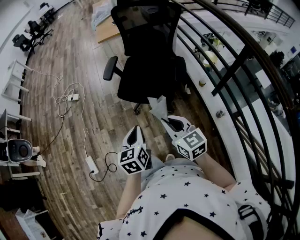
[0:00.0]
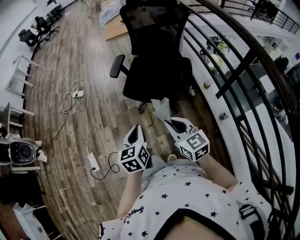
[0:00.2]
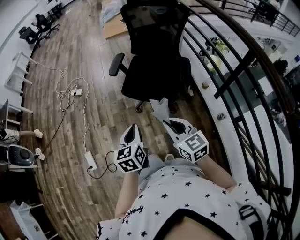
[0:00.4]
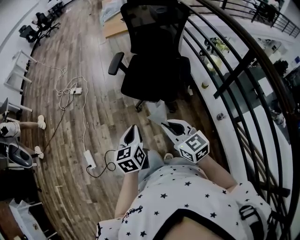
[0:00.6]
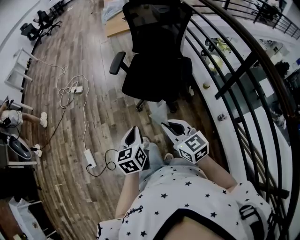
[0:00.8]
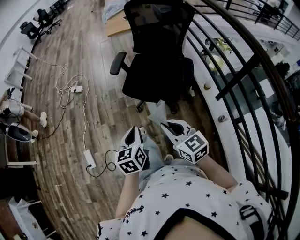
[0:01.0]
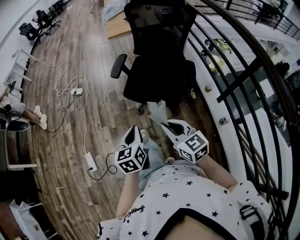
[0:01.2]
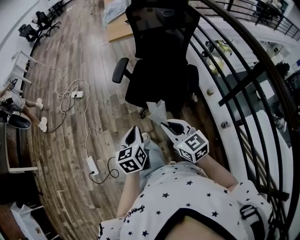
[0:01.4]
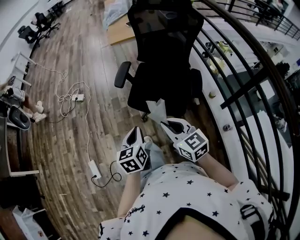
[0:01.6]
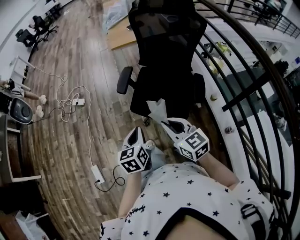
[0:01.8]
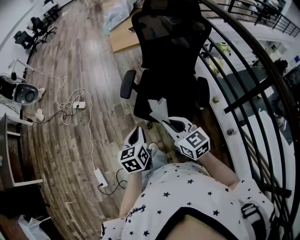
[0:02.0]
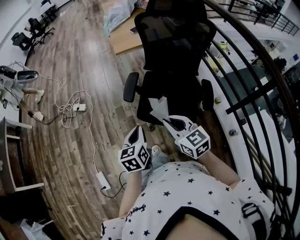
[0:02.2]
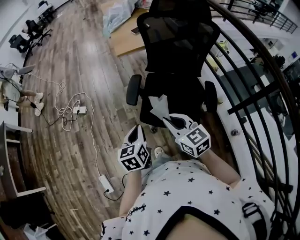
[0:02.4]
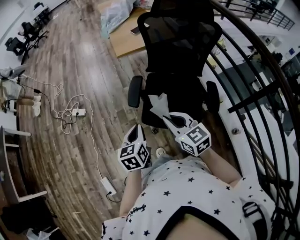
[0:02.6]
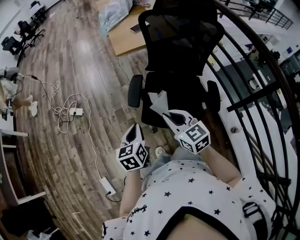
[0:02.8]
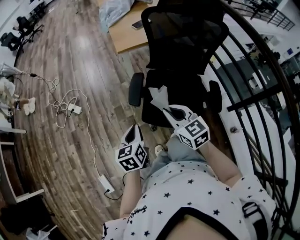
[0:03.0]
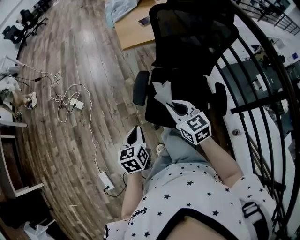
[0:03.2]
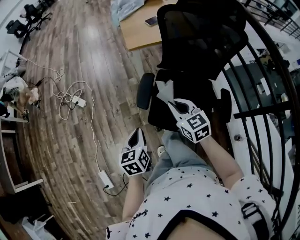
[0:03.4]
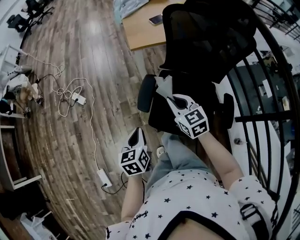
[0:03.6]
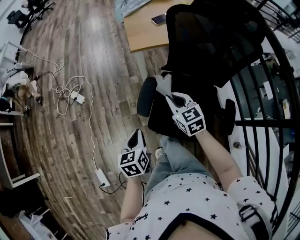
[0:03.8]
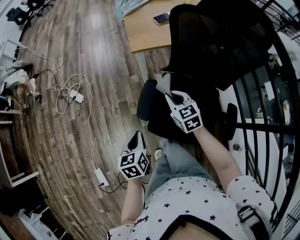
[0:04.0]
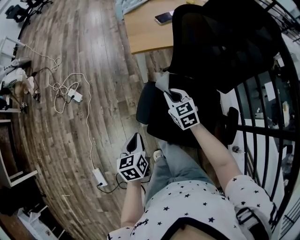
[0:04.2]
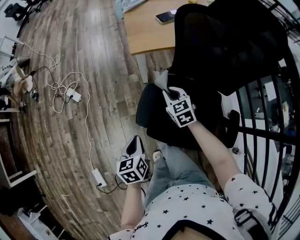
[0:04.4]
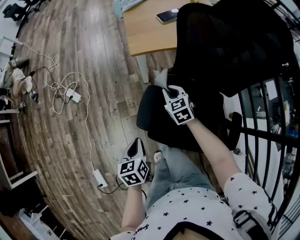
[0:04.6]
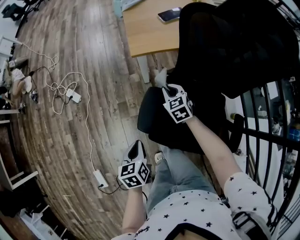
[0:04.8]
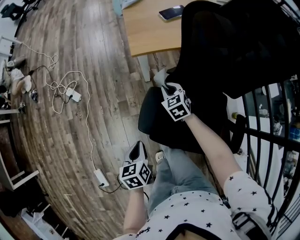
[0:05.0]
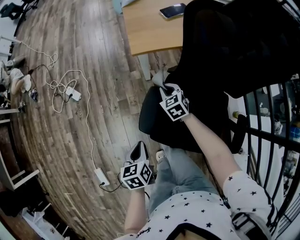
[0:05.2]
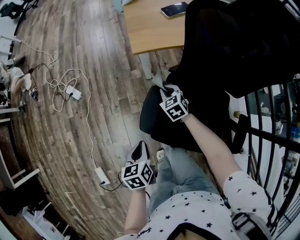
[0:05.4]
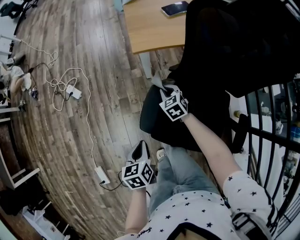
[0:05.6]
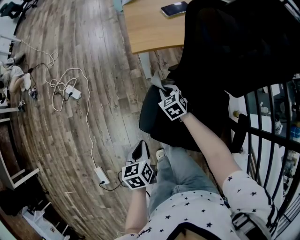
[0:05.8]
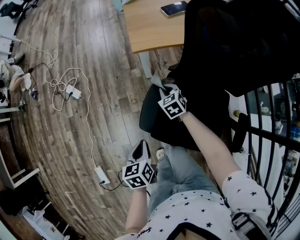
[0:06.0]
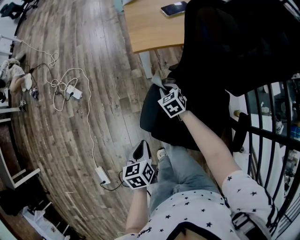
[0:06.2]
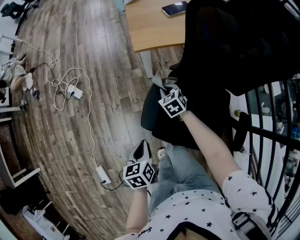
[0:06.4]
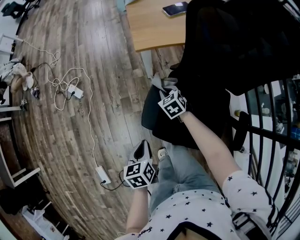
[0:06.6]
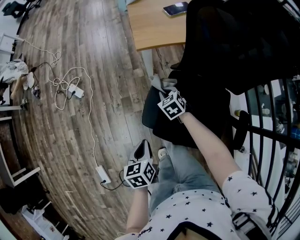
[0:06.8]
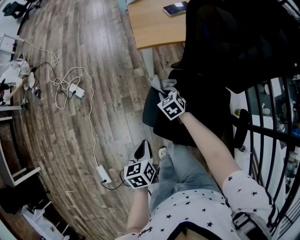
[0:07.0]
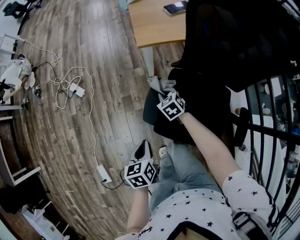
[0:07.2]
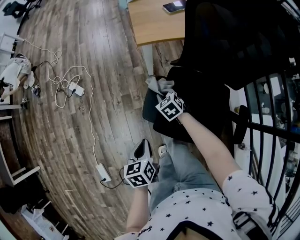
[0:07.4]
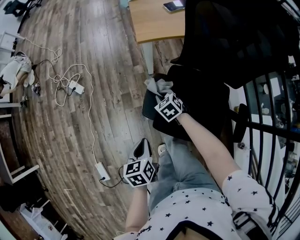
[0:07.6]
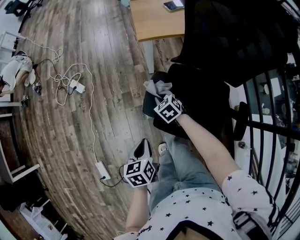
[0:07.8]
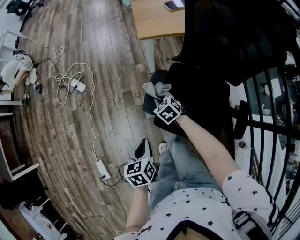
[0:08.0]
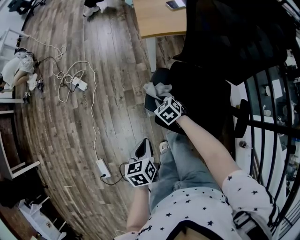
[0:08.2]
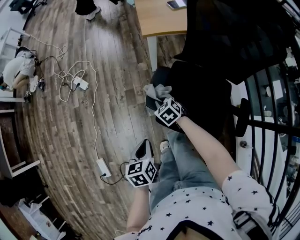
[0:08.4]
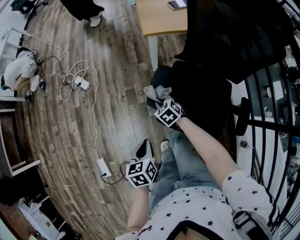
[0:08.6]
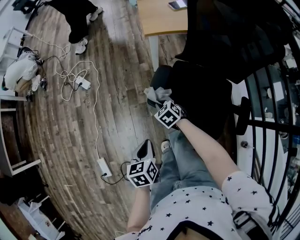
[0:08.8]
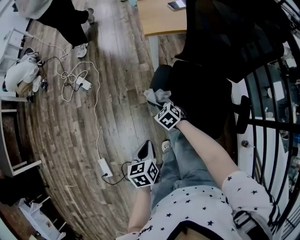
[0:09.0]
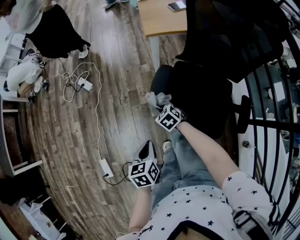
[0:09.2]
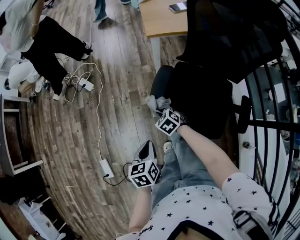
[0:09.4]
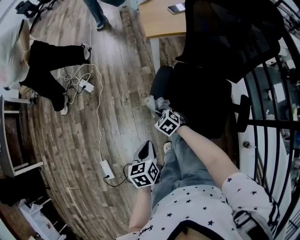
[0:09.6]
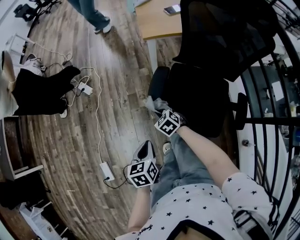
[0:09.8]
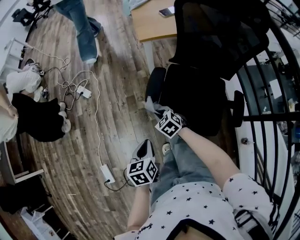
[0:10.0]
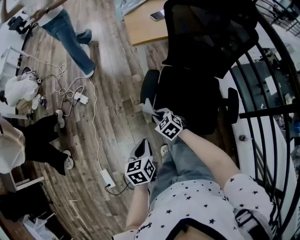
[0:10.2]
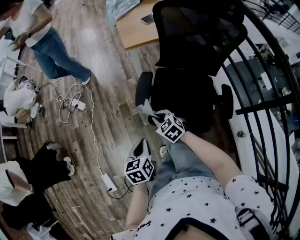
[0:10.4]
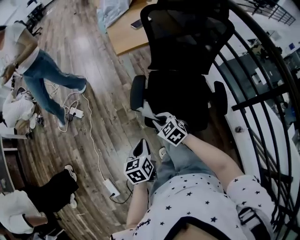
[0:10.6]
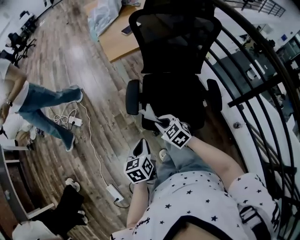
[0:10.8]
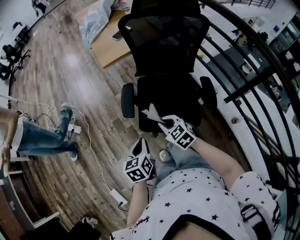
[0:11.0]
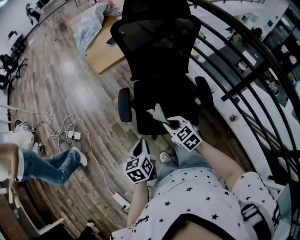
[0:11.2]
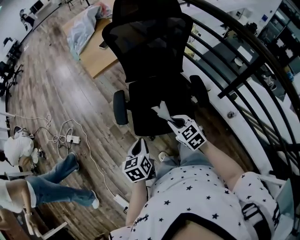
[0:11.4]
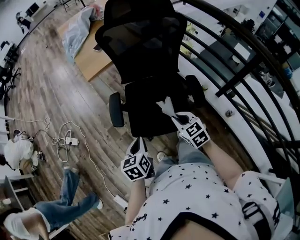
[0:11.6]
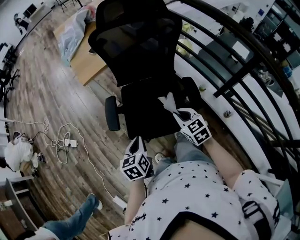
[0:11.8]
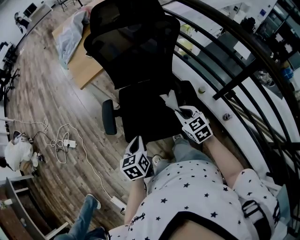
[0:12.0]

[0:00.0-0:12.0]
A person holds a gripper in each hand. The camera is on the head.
0.0 to 1.6 s: The grippers both shift forward by approximately 10 cm.
1.6 to 3.0 s: The right gripper heads forward, covering about 25 cm, while the left gripper shifts approximately 25 cm forward and to the left.
3.0 to 4.4 s: The left gripper moves forward and downward, about 15 cm, while the right gripper travels forward and downward by approximately 35 cm.
4.4 to 6.0 s: The right gripper heads downward, covering approximately 10 cm.
6.0 to 7.6 s: The right gripper shifts roughly 10 cm backward and to the left. The left gripper goes roughly 5 cm backward.
7.6 to 9.0 s: The left gripper goes about 5 cm backward; the right gripper shifts approximately 10 cm backward and to the left.
9.0 to 10.4 s: The right gripper goes some 15 cm upward and backward.
10.4 to 12.0 s: The right gripper shifts roughly 35 cm to the right, and rotates some 30 degrees. Meanwhile the left gripper moves to the right, about 20 cm.

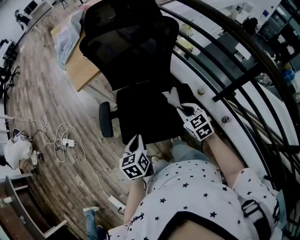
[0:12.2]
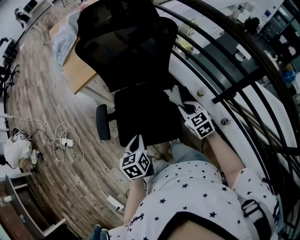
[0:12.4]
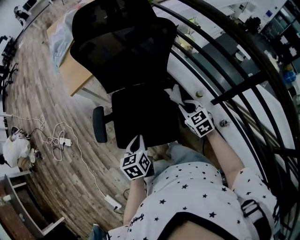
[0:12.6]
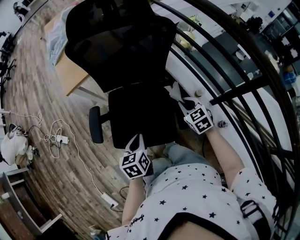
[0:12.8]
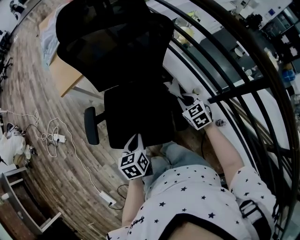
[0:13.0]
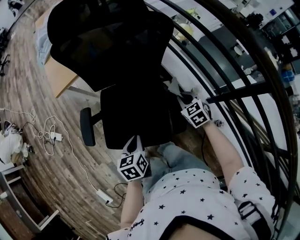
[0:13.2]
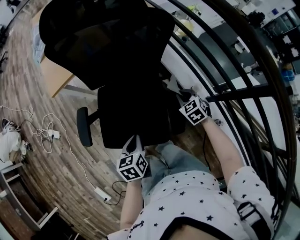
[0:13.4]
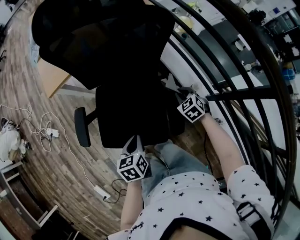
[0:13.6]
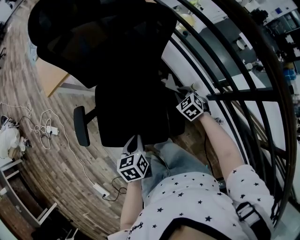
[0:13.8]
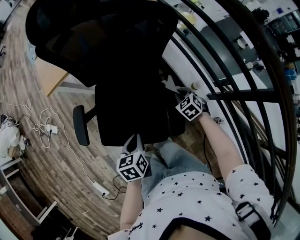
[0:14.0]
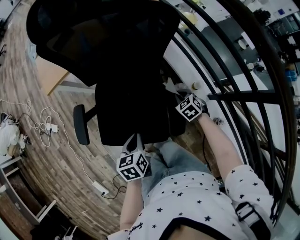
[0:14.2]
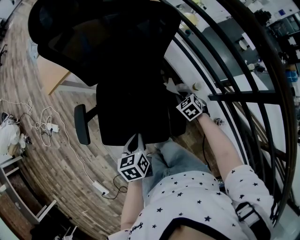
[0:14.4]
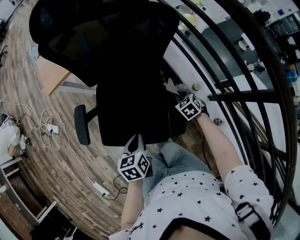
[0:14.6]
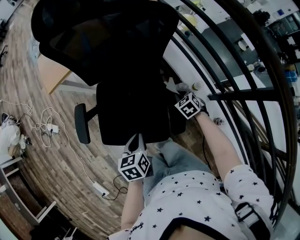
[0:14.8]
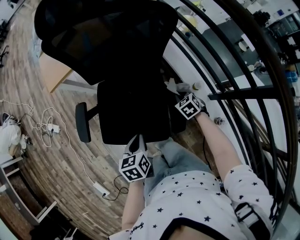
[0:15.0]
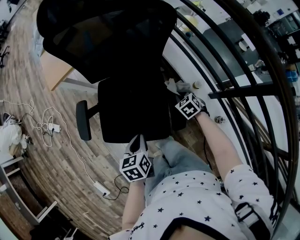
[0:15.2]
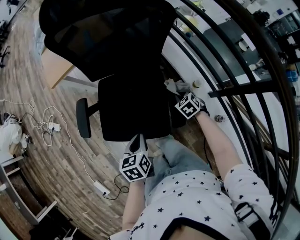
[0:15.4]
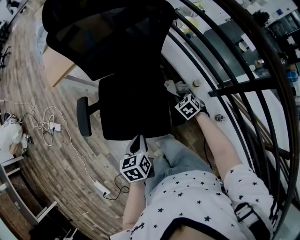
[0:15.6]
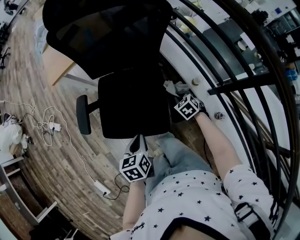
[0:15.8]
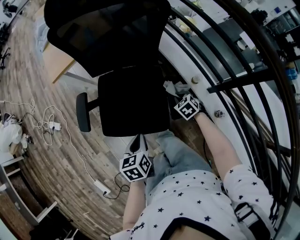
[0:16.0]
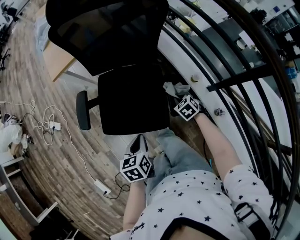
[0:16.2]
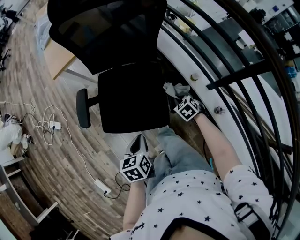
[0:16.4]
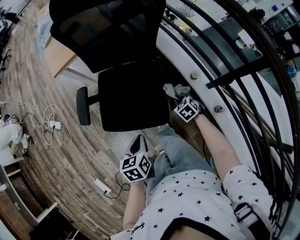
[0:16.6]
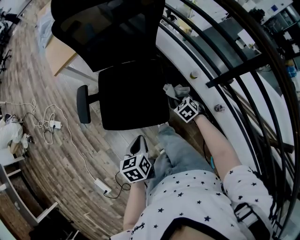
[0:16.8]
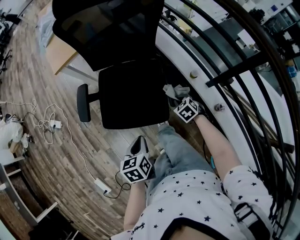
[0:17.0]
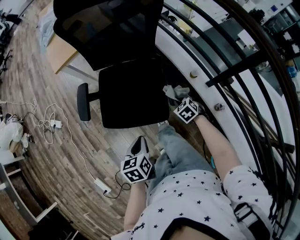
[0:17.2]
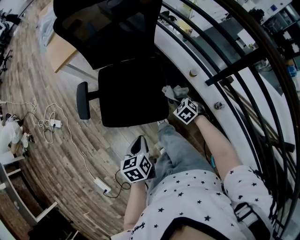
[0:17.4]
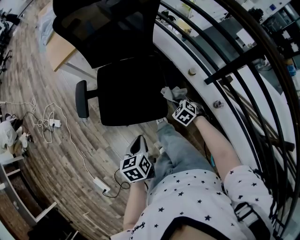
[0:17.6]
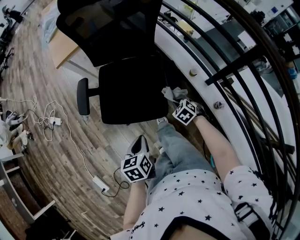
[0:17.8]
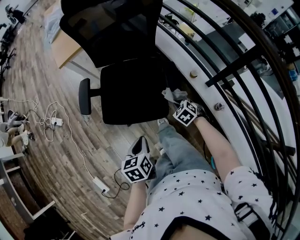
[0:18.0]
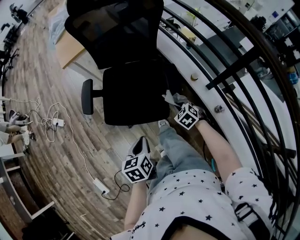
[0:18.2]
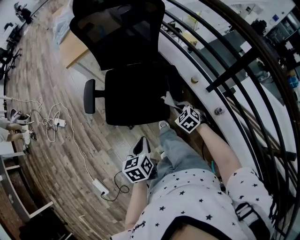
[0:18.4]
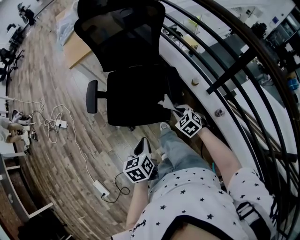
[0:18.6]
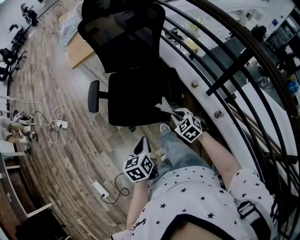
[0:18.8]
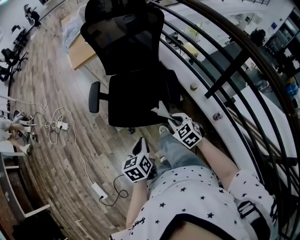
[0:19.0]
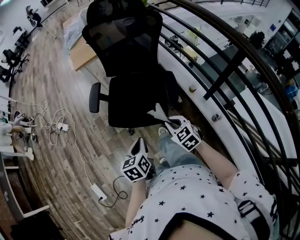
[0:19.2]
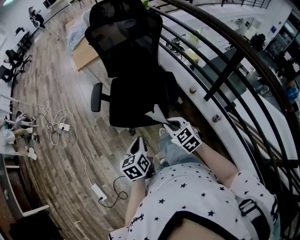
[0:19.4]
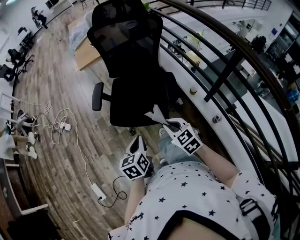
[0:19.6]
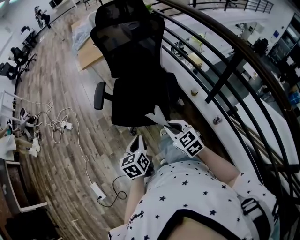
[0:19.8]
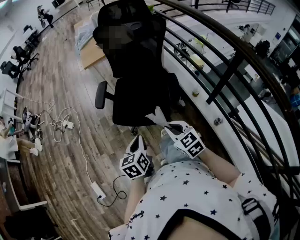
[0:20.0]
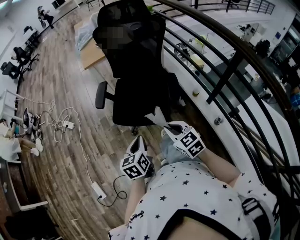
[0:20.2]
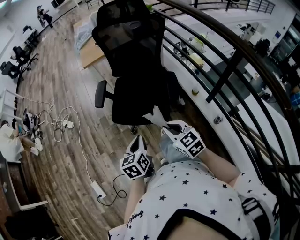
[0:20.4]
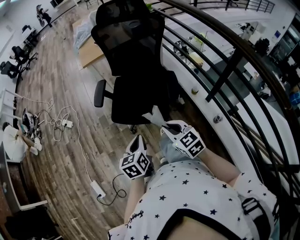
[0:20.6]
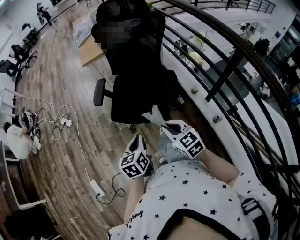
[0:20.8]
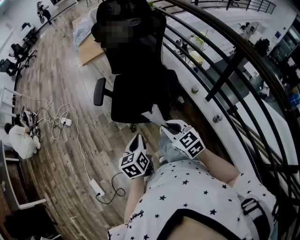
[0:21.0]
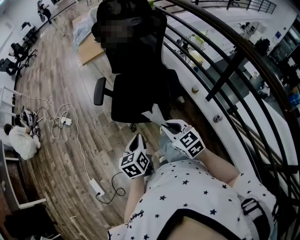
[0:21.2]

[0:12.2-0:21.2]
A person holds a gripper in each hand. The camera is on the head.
12.2 to 13.8 s: The left gripper shifts approximately 15 cm to the right, downward and forward. The right gripper shifts some 25 cm downward, forward and to the right, and swivels some 20 degrees.
13.8 to 15.2 s: The grippers stay close to where they were, moving slightly.
15.2 to 16.6 s: Both grippers travel together backward, roughly 10 cm.
16.6 to 18.2 s: The two grippers go some 10 cm backward.
18.2 to 19.8 s: The right gripper heads upward, backward and to the left, covering roughly 25 cm, and turns by about 30 degrees. Meanwhile the left gripper heads backward and upward, covering roughly 10 cm.
19.8 to 21.2 s: The grippers stay close to where they were, moving slightly.

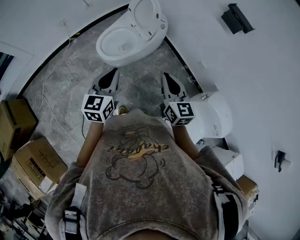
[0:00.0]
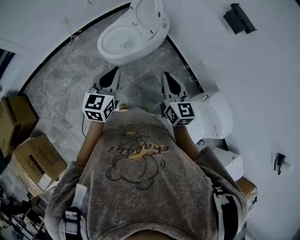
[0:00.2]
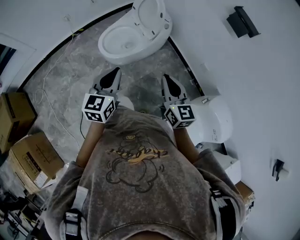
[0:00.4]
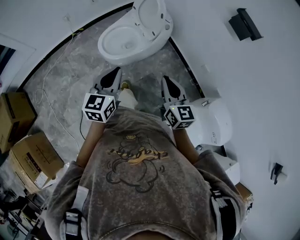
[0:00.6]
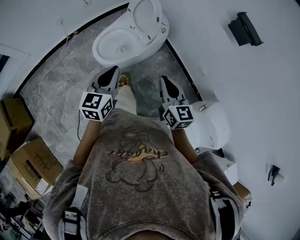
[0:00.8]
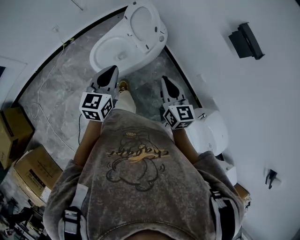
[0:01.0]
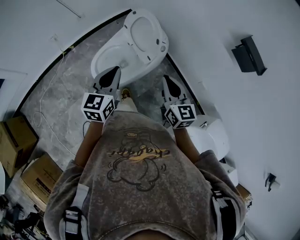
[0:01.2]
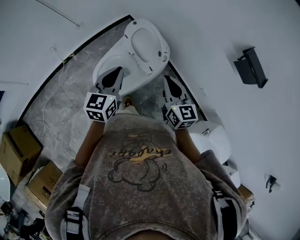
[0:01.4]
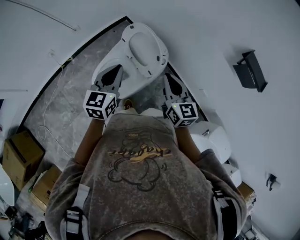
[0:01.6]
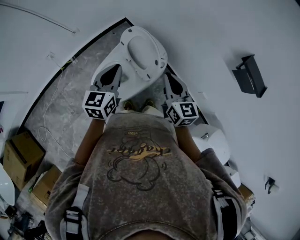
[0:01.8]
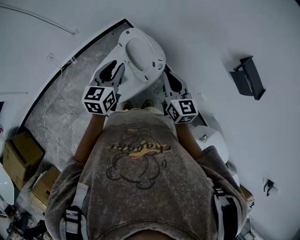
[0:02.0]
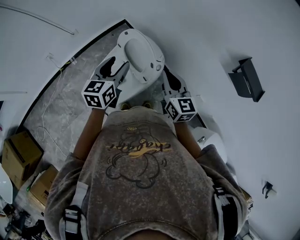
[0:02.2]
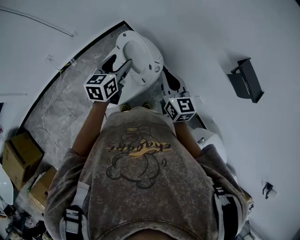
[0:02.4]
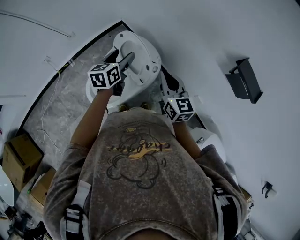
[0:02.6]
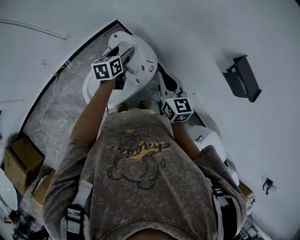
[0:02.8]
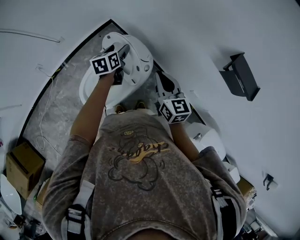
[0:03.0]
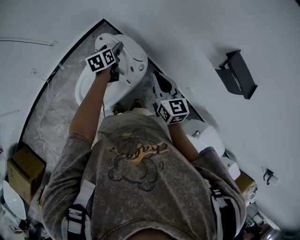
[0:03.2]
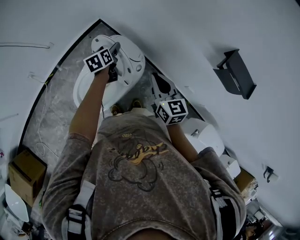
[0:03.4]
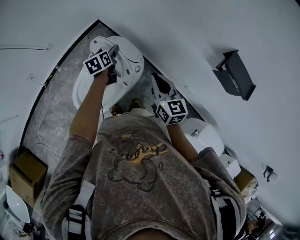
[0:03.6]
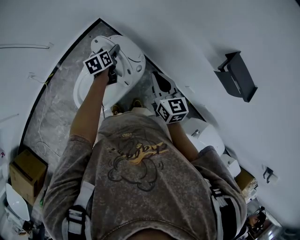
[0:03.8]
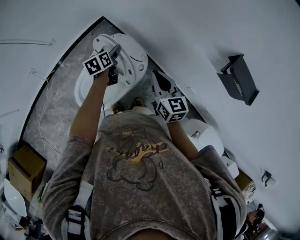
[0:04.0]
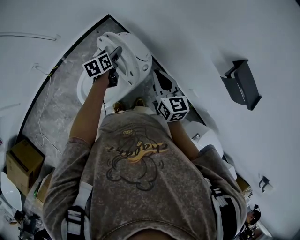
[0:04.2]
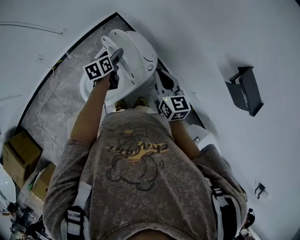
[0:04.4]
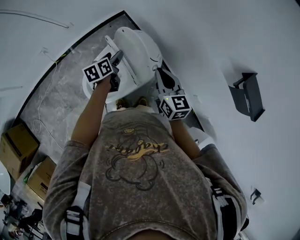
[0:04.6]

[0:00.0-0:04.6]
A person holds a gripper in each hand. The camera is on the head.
0.0 to 1.6 s: The two grippers go approximately 35 cm forward.
1.6 to 3.0 s: The right gripper shifts about 10 cm forward and to the right. Meanwhile the left gripper moves forward, downward and to the right, about 25 cm, rotates roughly 30 degrees, and opens up.
3.0 to 4.6 s: The right gripper changes place by some 5 cm; the left gripper shifts approximately 10 cm to the left.
